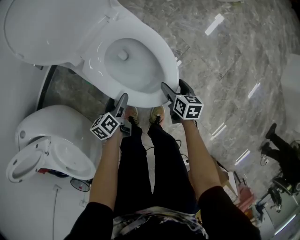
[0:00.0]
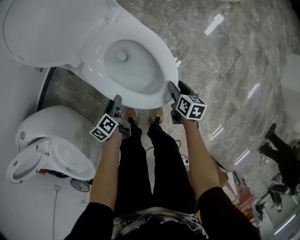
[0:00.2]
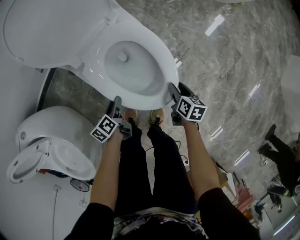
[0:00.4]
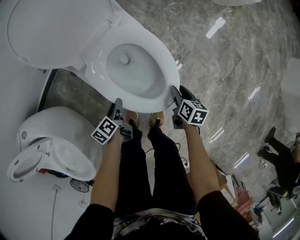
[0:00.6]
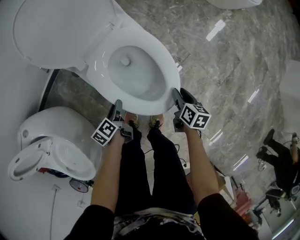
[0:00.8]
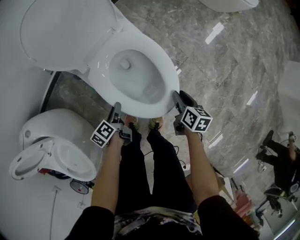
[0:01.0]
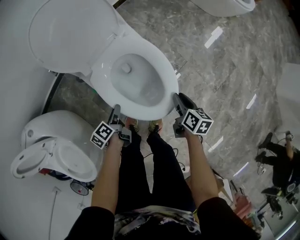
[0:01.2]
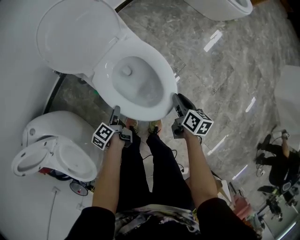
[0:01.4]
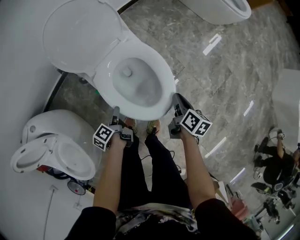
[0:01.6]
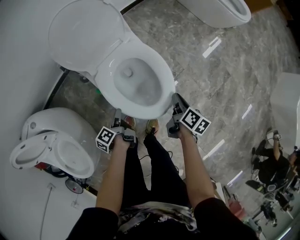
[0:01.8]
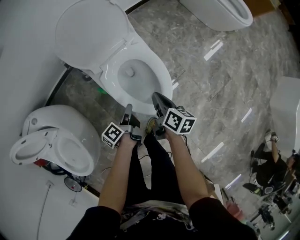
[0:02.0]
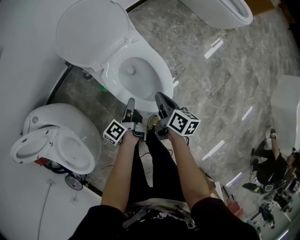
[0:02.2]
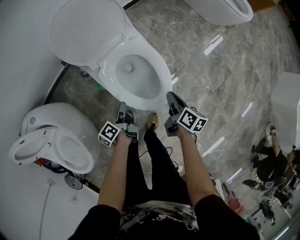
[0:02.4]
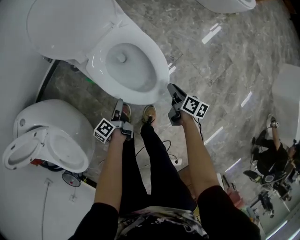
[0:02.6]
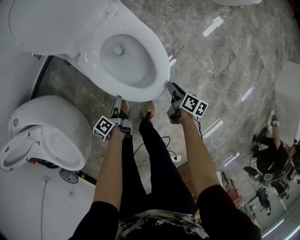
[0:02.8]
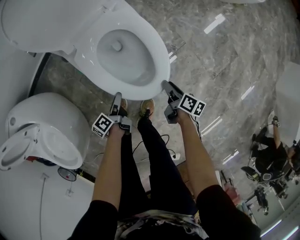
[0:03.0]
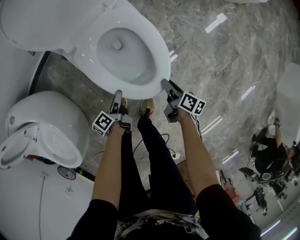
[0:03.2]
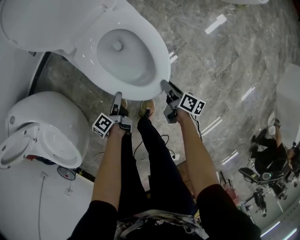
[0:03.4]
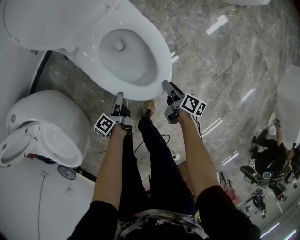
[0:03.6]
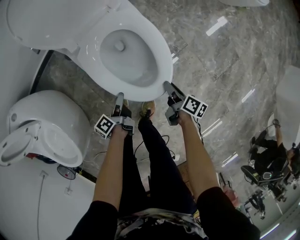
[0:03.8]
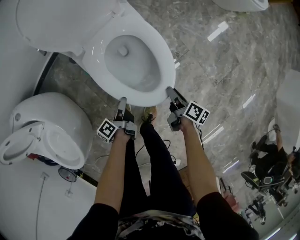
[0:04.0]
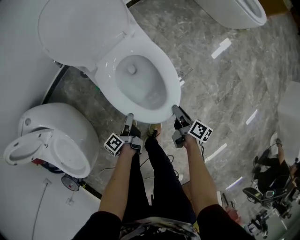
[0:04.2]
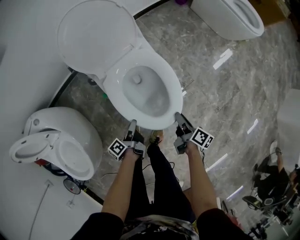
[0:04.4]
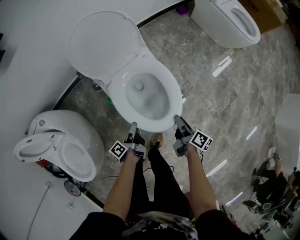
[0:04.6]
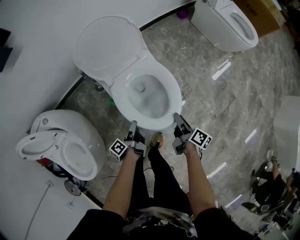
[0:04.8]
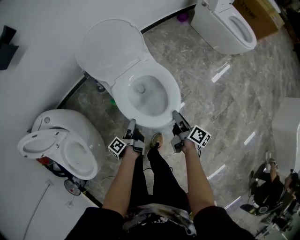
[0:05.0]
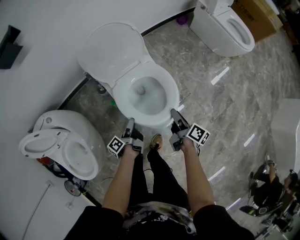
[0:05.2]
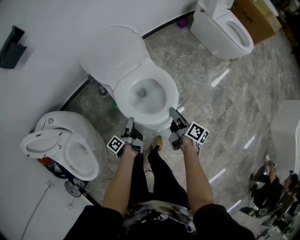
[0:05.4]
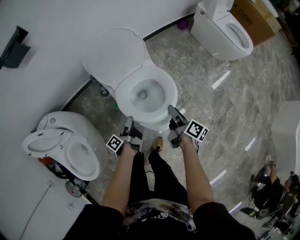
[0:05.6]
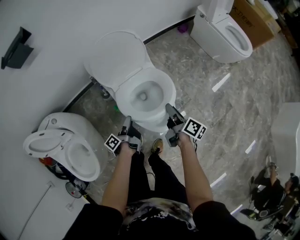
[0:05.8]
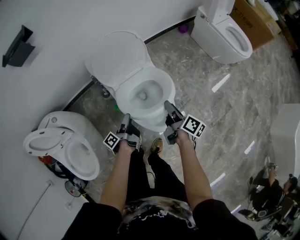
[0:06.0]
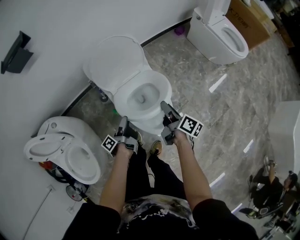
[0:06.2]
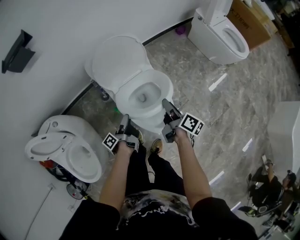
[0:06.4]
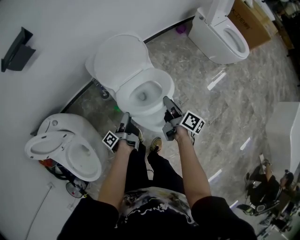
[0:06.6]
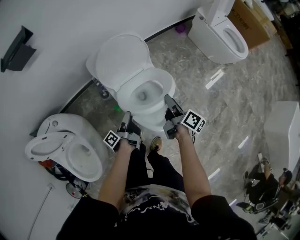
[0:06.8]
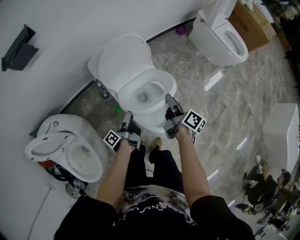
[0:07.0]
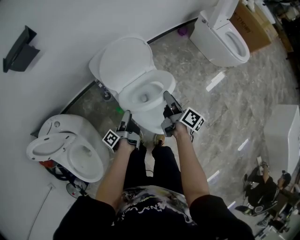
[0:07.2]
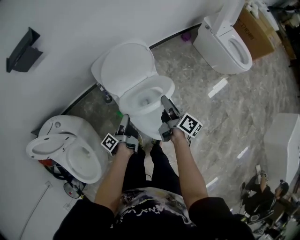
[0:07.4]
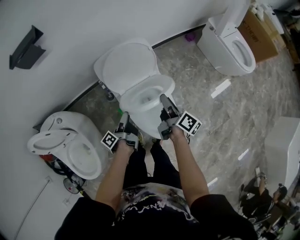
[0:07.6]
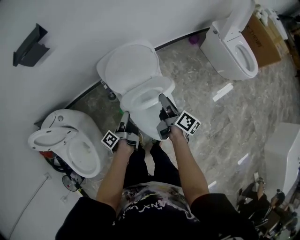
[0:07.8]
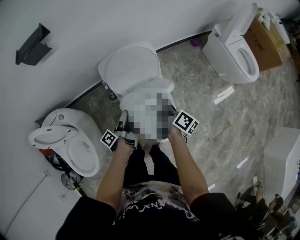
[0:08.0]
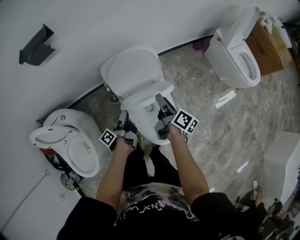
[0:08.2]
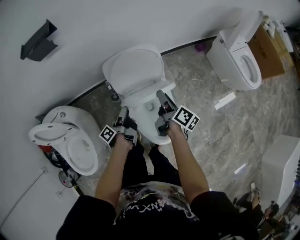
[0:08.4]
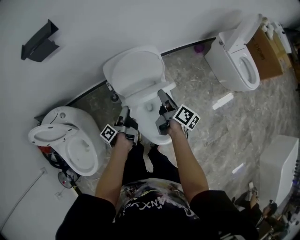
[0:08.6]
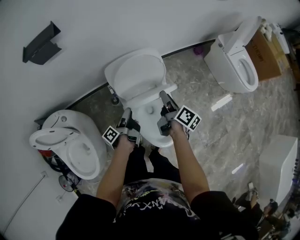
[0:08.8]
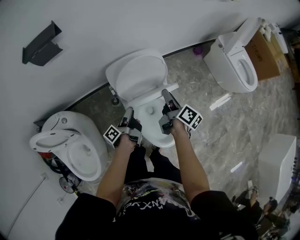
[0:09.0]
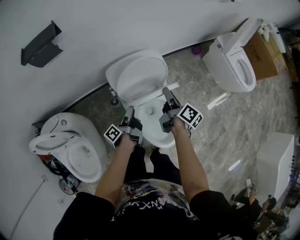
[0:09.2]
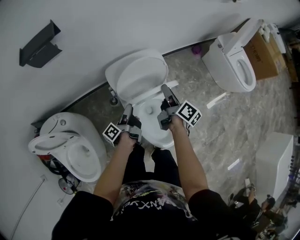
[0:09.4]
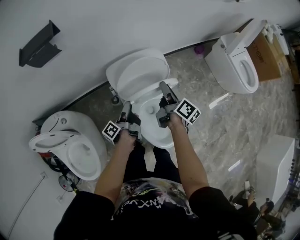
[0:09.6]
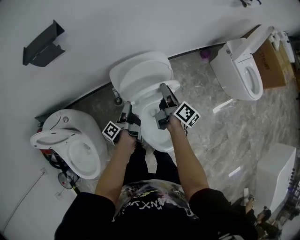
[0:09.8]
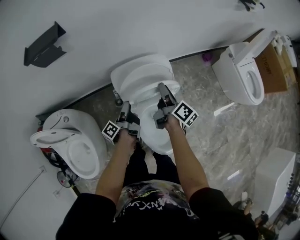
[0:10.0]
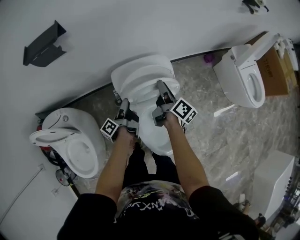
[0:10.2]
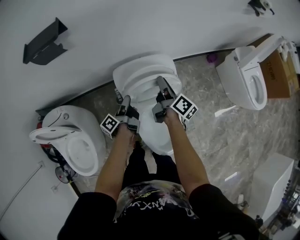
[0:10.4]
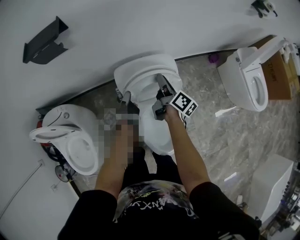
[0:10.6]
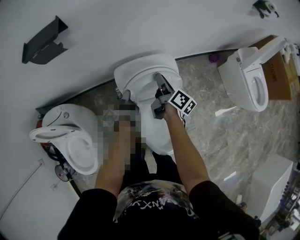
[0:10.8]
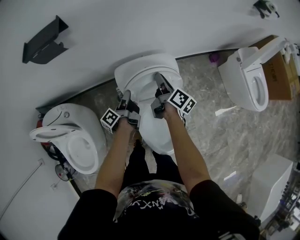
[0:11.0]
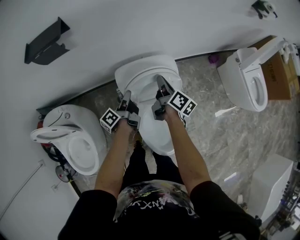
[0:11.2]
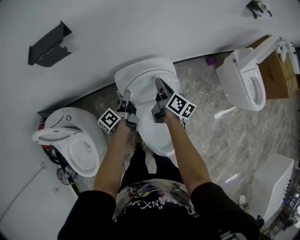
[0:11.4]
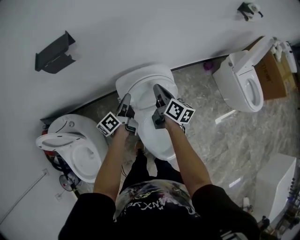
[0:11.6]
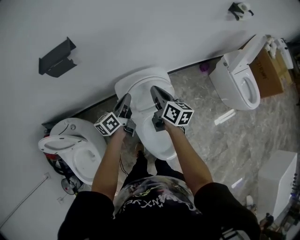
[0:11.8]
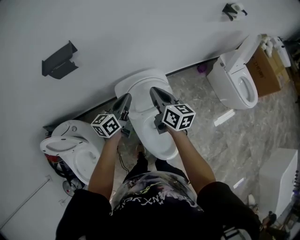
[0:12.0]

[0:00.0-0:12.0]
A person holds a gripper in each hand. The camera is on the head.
0:00.0 to 0:01.6: The right gripper is displaced upward by some 15 cm, changes its angle by roughly 20 degrees, and closes up. The left gripper goes some 10 cm upward, swivels about 30 degrees, and closes its fingers.
0:01.6 to 0:03.0: The left gripper travels downward, to the right and backward by approximately 15 cm. Meanwhile the right gripper travels downward by some 20 cm.
0:03.0 to 0:04.4: The two grippers go about 10 cm upward.
0:04.4 to 0:06.0: Both grippers travel together upward and forward, about 20 cm.
0:06.0 to 0:07.6: The left gripper goes approximately 10 cm forward and upward; the right gripper heads forward, upward and to the left, covering about 15 cm.
0:07.6 to 0:09.0: The grippers both shift forward by approximately 10 cm.
0:09.0 to 0:10.4: Both grippers move forward, about 10 cm.
0:10.4 to 0:12.0: Both grippers travel together upward, about 20 cm. The right gripper turns by some 40 degrees; the left gripper rolls clockwise, seen from behind, by some 50 degrees.

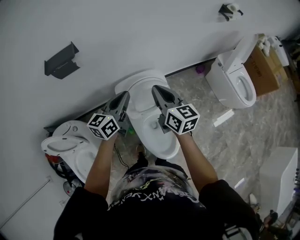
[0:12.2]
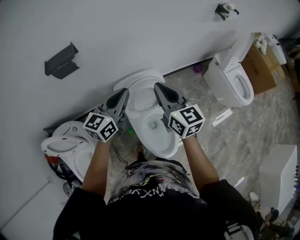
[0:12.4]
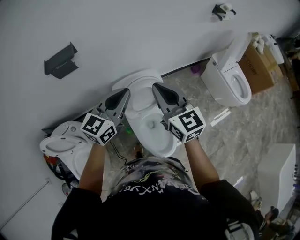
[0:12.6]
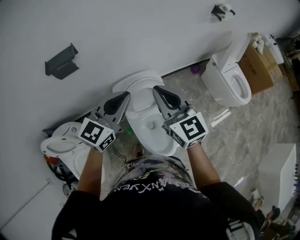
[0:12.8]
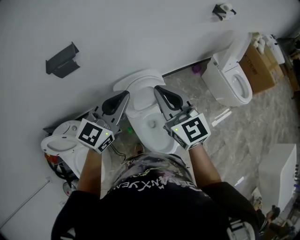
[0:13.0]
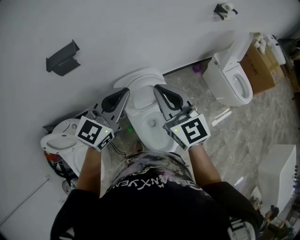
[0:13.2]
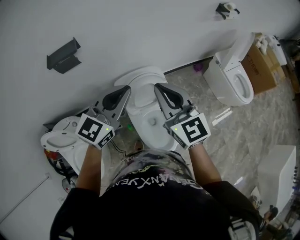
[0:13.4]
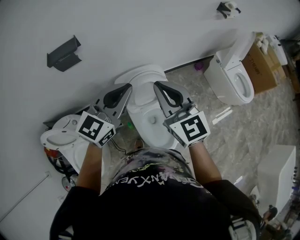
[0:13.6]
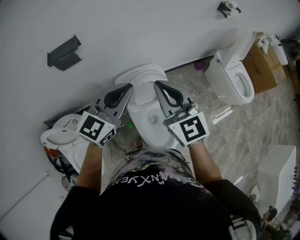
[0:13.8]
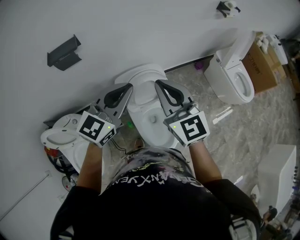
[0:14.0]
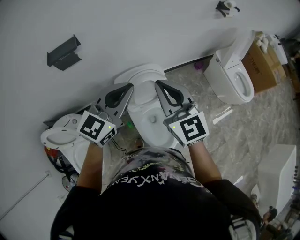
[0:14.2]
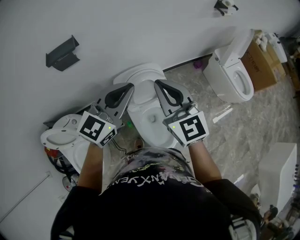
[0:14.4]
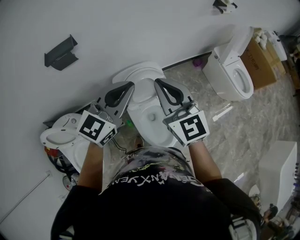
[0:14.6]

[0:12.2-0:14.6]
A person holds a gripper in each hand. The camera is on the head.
0:12.2 to 0:13.4: The grippers both shift upward and backward by roughly 15 cm. The left gripper rotates some 30 degrees. Meanwhile the right gripper swivels some 30 degrees.
0:13.4 to 0:14.6: The grippers stay close to where they were, moving slightly.

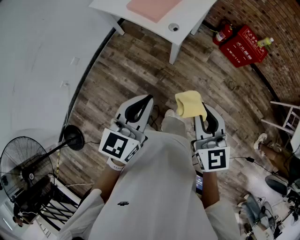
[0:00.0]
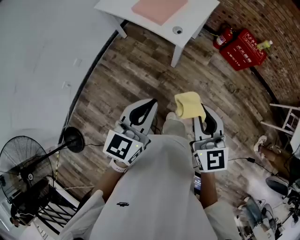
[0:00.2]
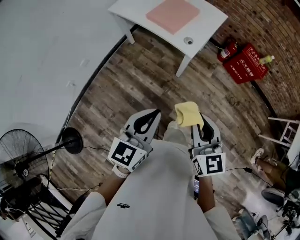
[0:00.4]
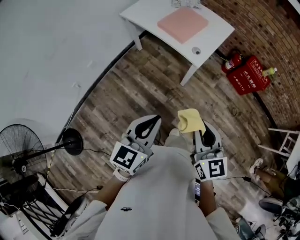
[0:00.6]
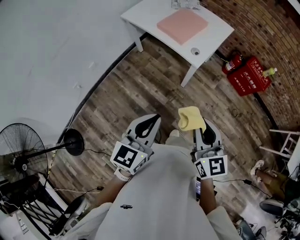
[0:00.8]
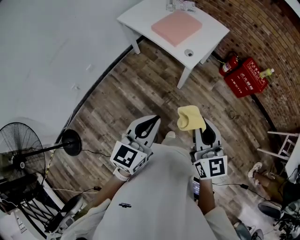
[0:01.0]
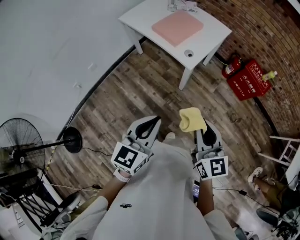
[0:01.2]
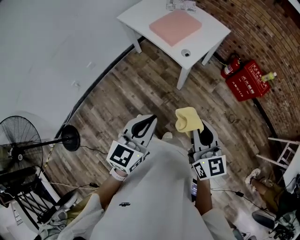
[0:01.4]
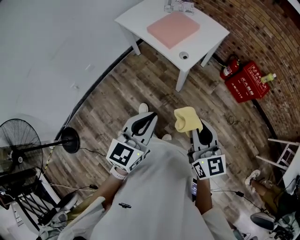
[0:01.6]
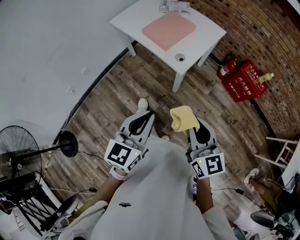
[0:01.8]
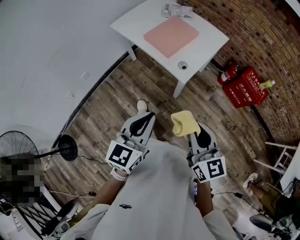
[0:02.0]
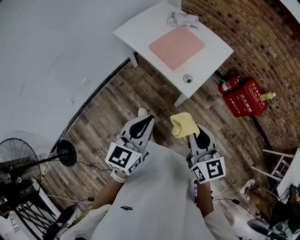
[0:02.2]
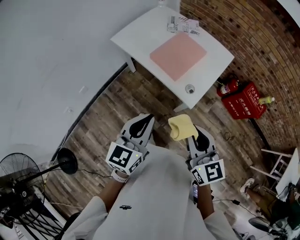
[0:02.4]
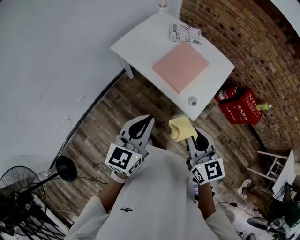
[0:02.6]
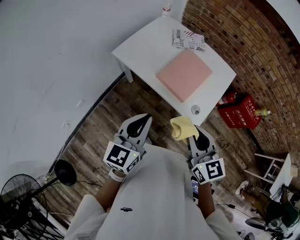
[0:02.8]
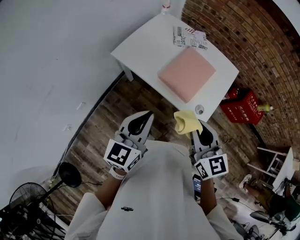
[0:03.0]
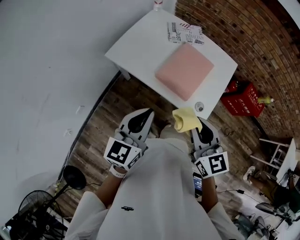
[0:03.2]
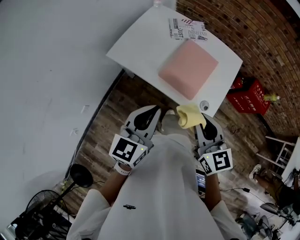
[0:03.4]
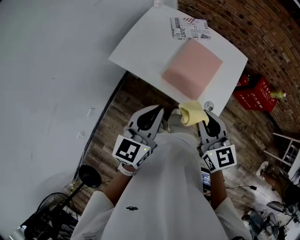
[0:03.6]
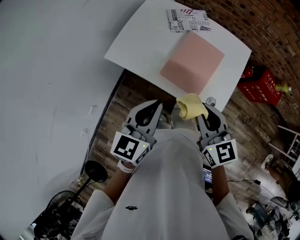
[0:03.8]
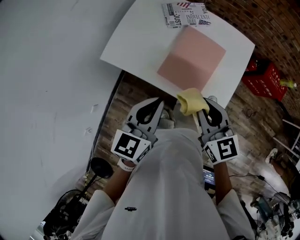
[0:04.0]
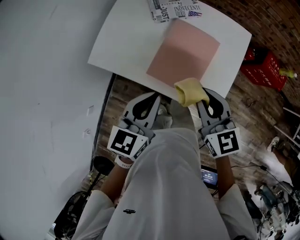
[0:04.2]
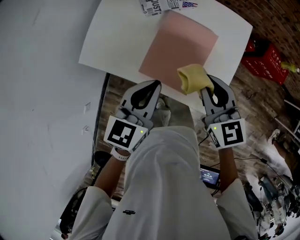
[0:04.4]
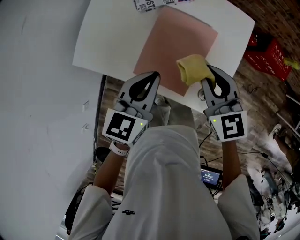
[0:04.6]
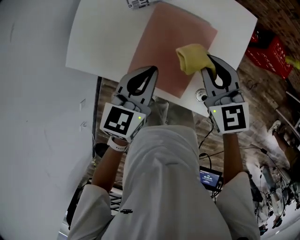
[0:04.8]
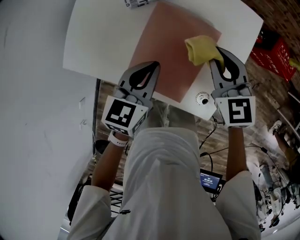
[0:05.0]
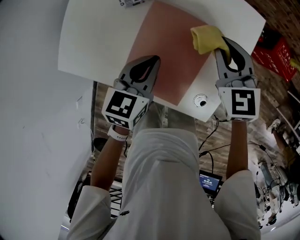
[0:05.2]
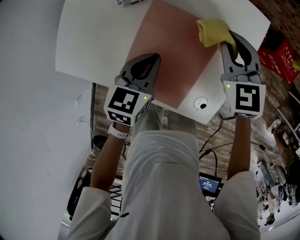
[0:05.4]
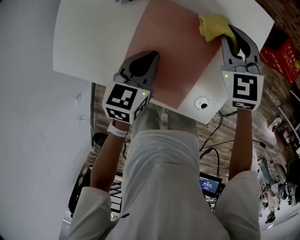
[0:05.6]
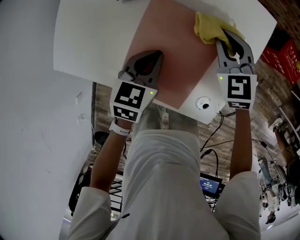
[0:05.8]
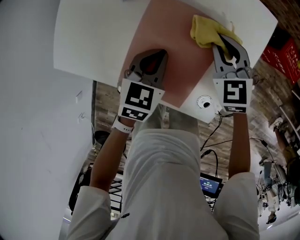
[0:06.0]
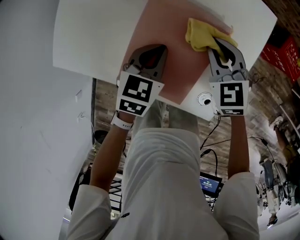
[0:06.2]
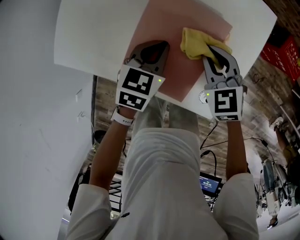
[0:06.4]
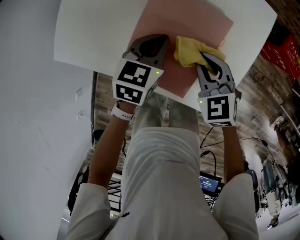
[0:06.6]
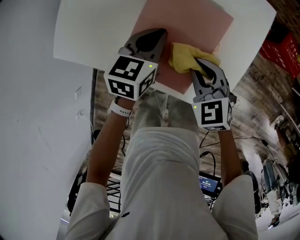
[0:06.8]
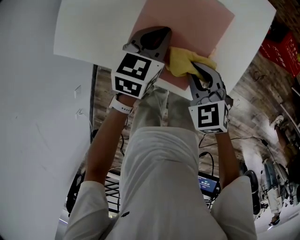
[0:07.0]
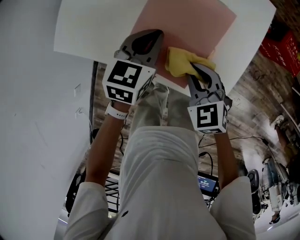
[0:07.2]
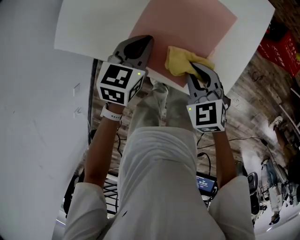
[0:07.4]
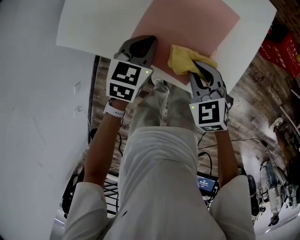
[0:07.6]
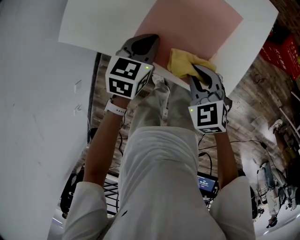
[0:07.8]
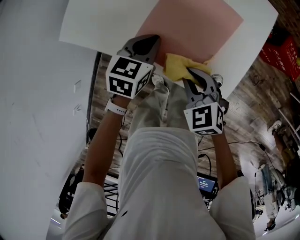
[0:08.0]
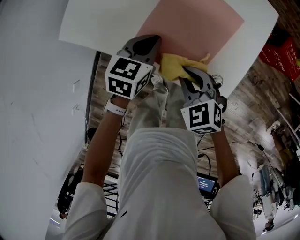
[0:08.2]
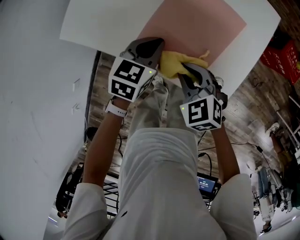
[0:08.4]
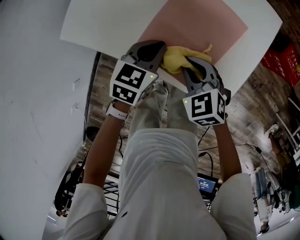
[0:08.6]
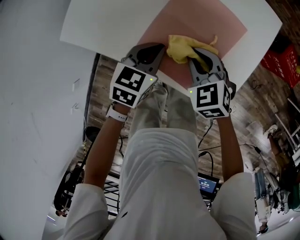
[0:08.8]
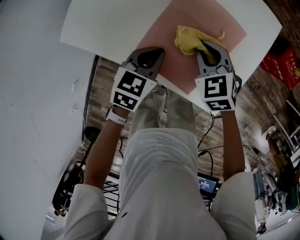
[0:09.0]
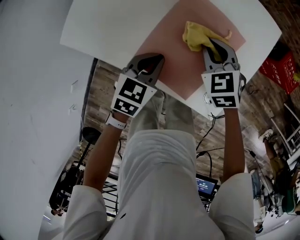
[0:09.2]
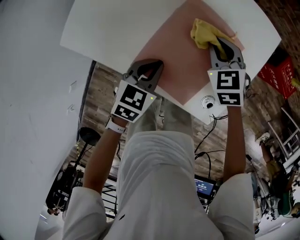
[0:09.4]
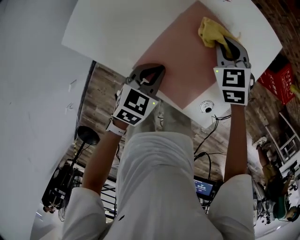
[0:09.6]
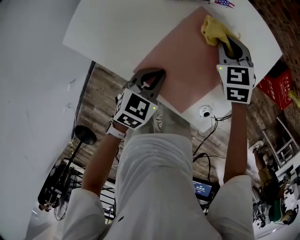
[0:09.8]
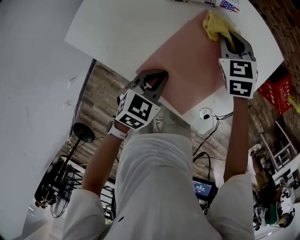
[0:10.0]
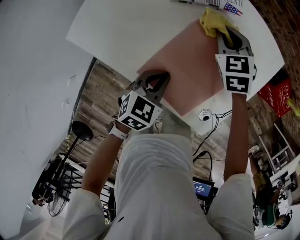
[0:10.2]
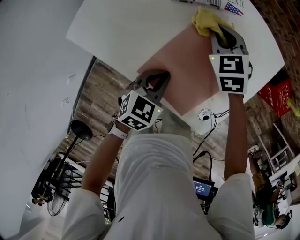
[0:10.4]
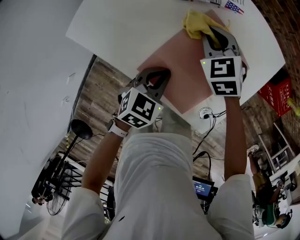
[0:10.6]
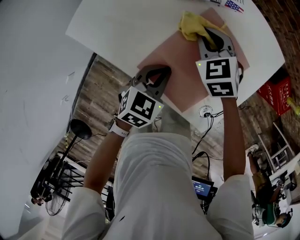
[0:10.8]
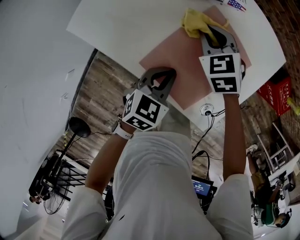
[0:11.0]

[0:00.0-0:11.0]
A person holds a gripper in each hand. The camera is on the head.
0:00.0 to 0:01.6: The left gripper travels to the left and back again, approximately 10 cm each way. The right gripper reaches approximately 10 cm to the left, then returns.
0:01.6 to 0:03.2: The two grippers travel together, forward and to the left, roughly 40 cm.
0:03.2 to 0:04.8: The right gripper is displaced forward and downward by about 30 cm. Meanwhile the left gripper travels forward, downward and to the right by some 30 cm, and turns by approximately 20 degrees.
0:04.8 to 0:06.2: The two grippers go some 15 cm downward. The right gripper rotates about 20 degrees.
0:06.2 to 0:07.8: The right gripper moves backward, some 20 cm. Meanwhile the left gripper is displaced backward and to the left by roughly 10 cm.
0:07.8 to 0:09.4: The right gripper is displaced forward by about 20 cm.
0:09.4 to 0:11.0: The right gripper moves to the left, some 10 cm.
